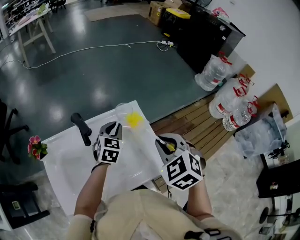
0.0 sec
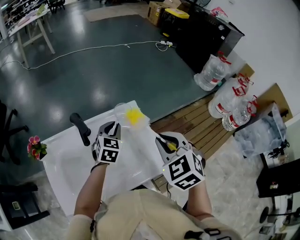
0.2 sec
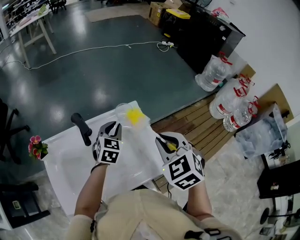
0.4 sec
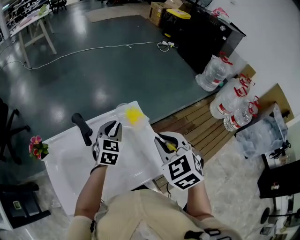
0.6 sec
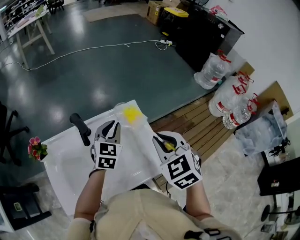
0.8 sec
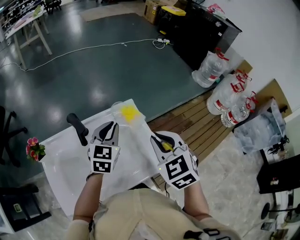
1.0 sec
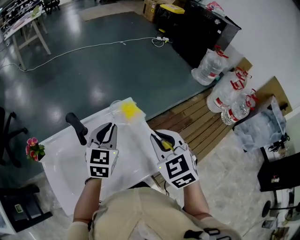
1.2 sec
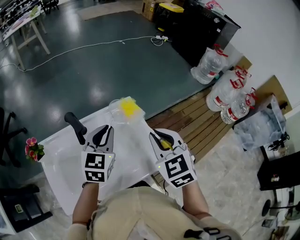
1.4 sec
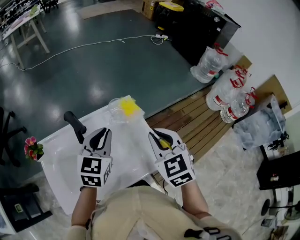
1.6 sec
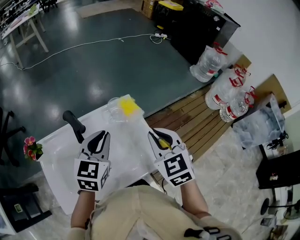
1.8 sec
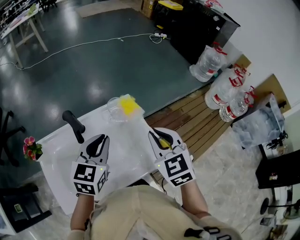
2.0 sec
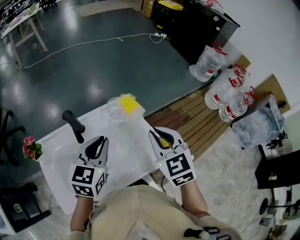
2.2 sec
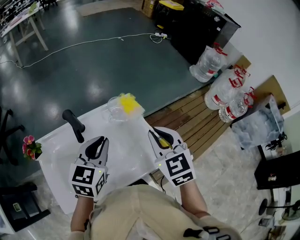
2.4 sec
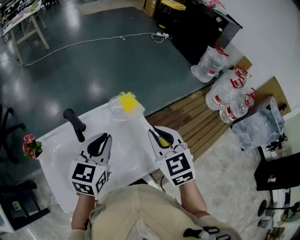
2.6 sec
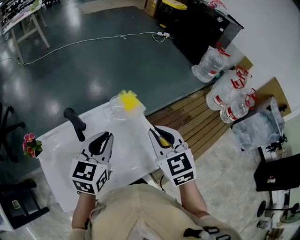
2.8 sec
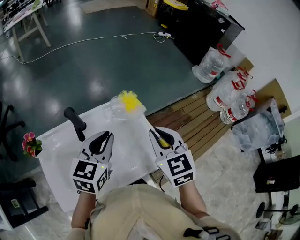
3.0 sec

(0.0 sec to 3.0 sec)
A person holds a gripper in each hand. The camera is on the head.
0.0 sec - 1.6 sec: The left gripper goes approximately 10 cm upward.

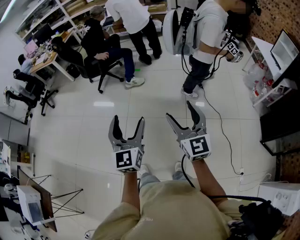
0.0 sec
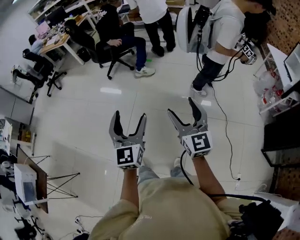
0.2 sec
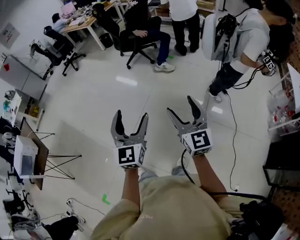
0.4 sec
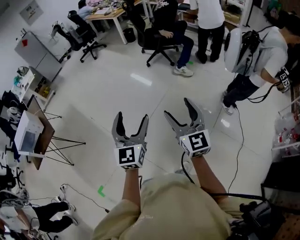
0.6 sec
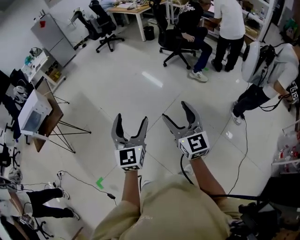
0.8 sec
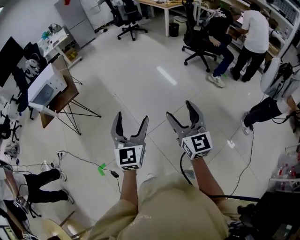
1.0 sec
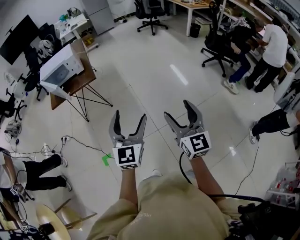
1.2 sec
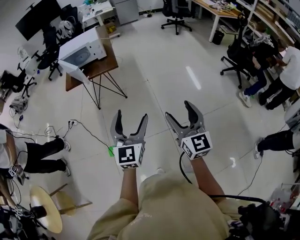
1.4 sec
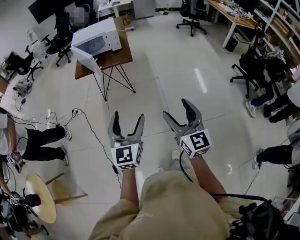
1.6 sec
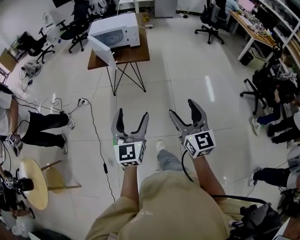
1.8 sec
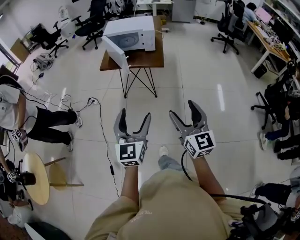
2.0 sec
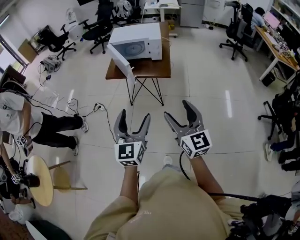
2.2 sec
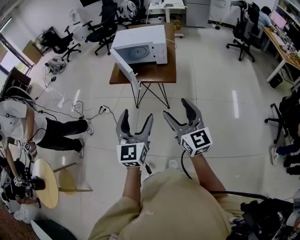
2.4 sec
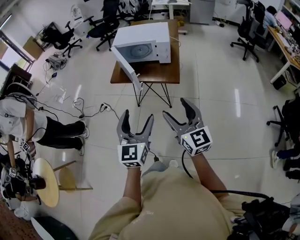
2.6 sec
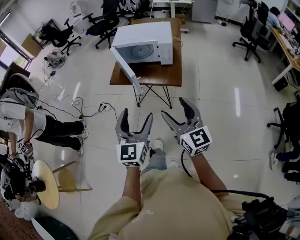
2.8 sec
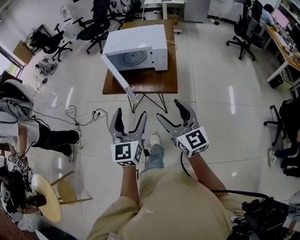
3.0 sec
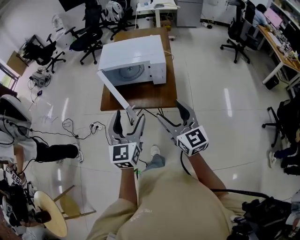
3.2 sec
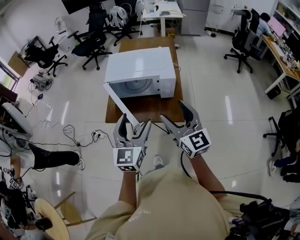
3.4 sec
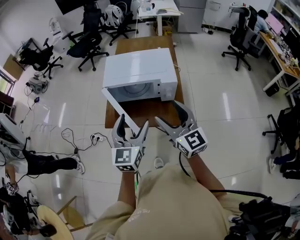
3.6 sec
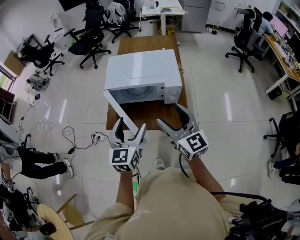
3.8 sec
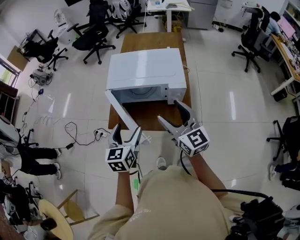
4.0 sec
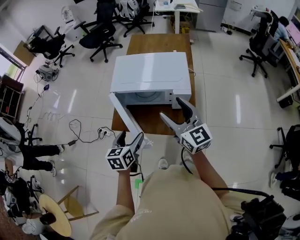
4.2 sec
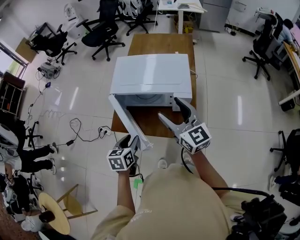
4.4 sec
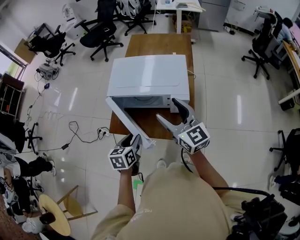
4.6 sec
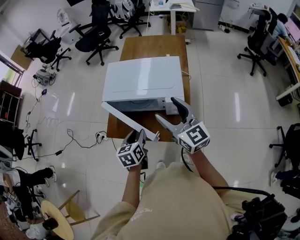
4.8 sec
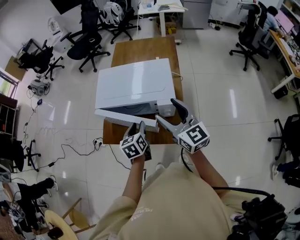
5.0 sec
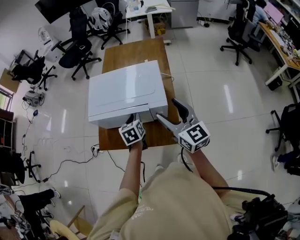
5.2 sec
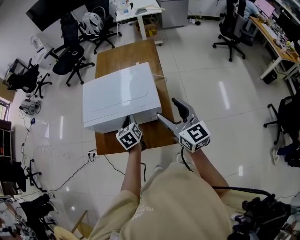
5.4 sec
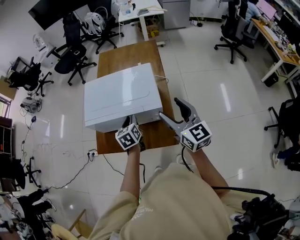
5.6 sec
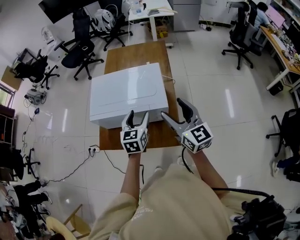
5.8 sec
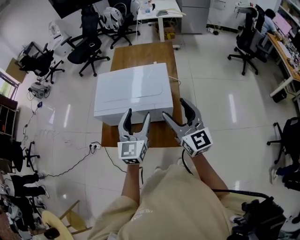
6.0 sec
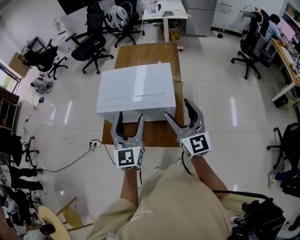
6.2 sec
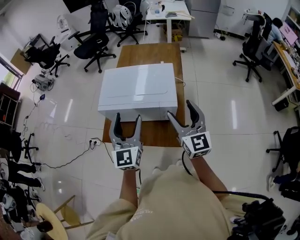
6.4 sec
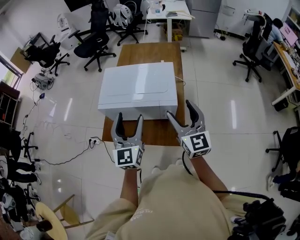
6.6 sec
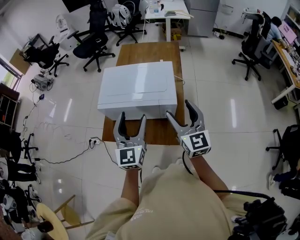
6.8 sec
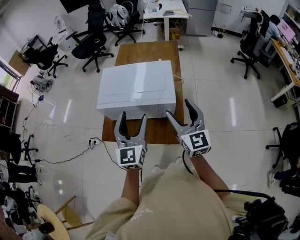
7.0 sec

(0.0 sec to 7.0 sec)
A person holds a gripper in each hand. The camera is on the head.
0.0 sec - 1.4 sec: The two grippers travel together, some 80 cm. The left gripper swivels some 50 degrees. Meanwhile the right gripper rotates approximately 60 degrees.
1.4 sec - 2.8 sec: Both grippers are carried about 50 cm. The left gripper turns by roughly 20 degrees; the right gripper turns by some 30 degrees.
2.8 sec - 4.2 sec: The two grippers go approximately 40 cm forward. The left gripper points its fingers some 30 degrees further downward.
4.2 sec - 5.6 sec: The left gripper shifts approximately 20 cm to the right and forward, and closes up. The right gripper heads to the right, covering about 15 cm.
5.6 sec - 7.0 sec: The left gripper heads upward and backward, covering approximately 25 cm, tips its fingers upward by some 40 degrees, and opens up.

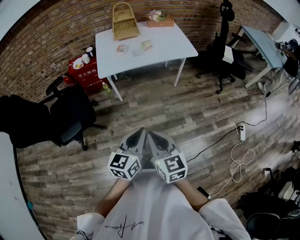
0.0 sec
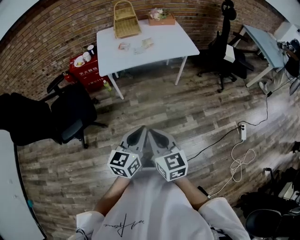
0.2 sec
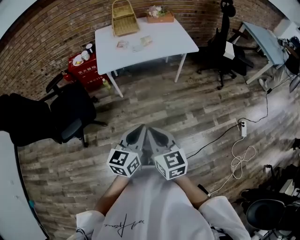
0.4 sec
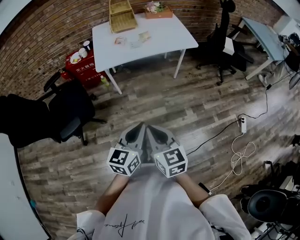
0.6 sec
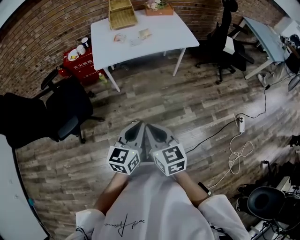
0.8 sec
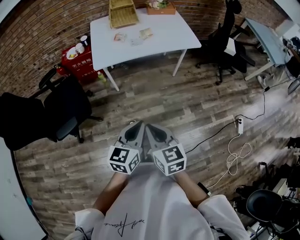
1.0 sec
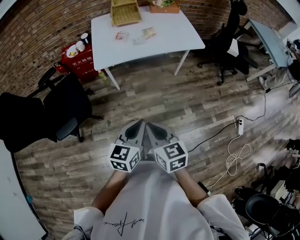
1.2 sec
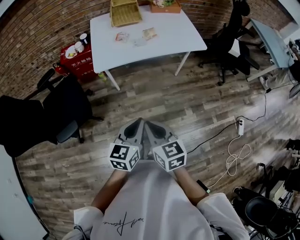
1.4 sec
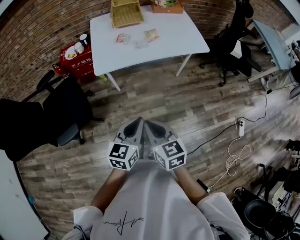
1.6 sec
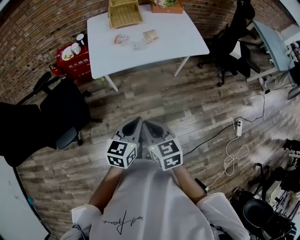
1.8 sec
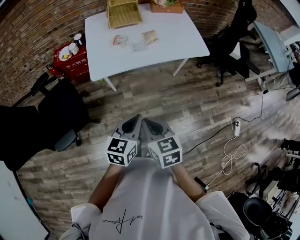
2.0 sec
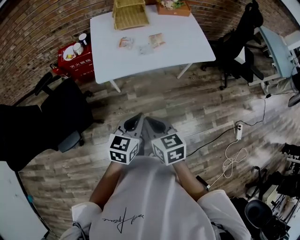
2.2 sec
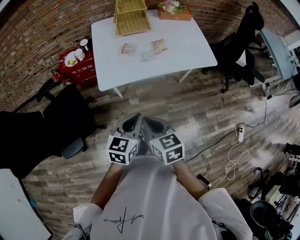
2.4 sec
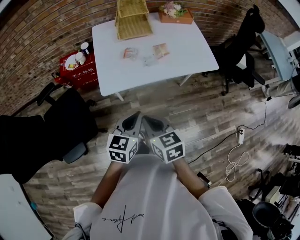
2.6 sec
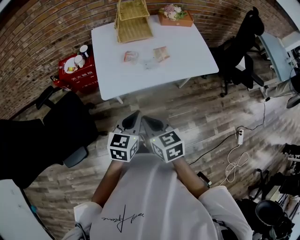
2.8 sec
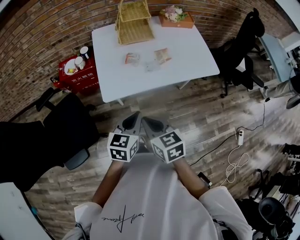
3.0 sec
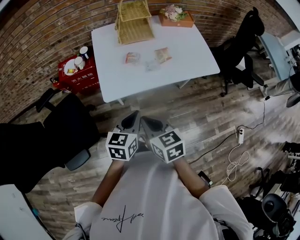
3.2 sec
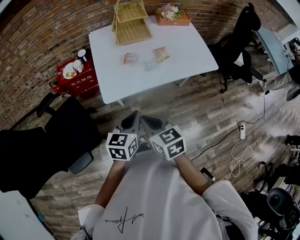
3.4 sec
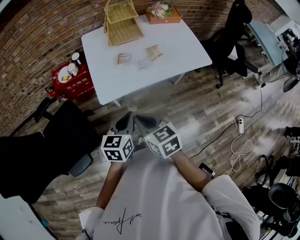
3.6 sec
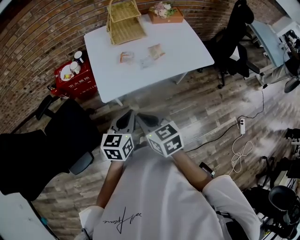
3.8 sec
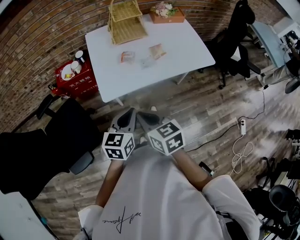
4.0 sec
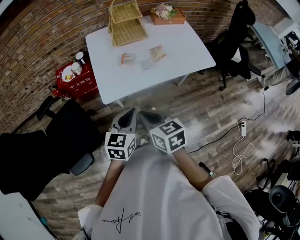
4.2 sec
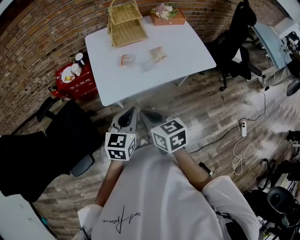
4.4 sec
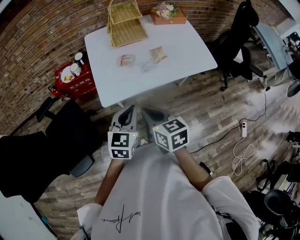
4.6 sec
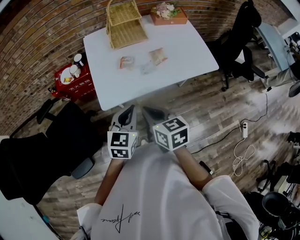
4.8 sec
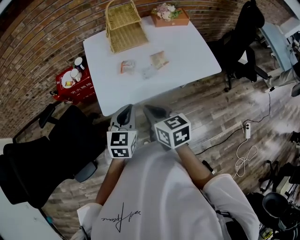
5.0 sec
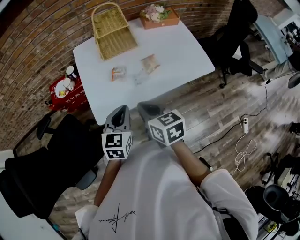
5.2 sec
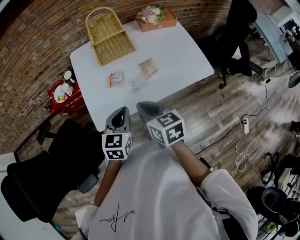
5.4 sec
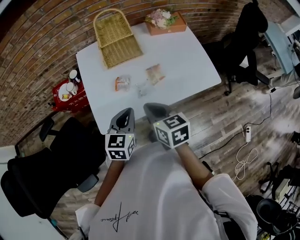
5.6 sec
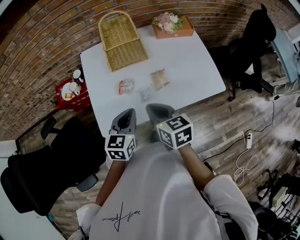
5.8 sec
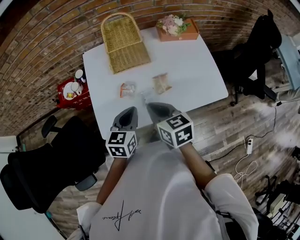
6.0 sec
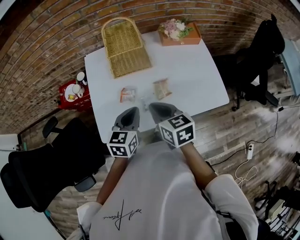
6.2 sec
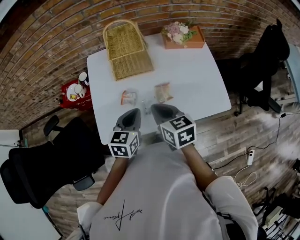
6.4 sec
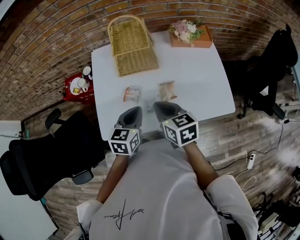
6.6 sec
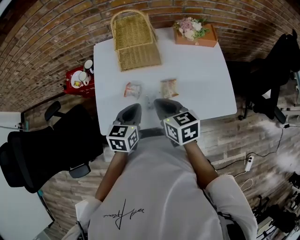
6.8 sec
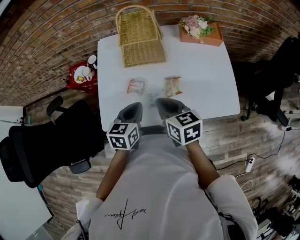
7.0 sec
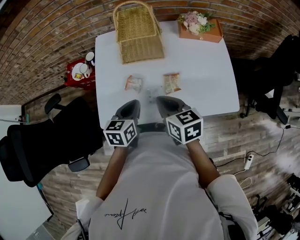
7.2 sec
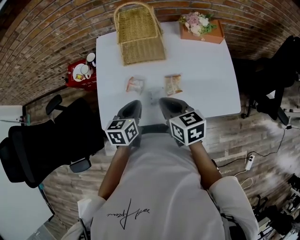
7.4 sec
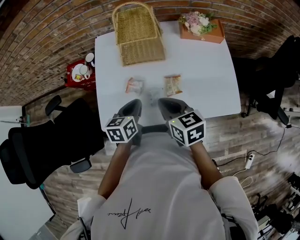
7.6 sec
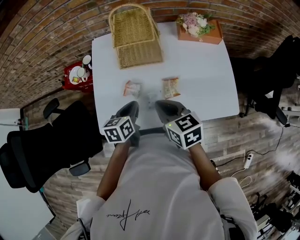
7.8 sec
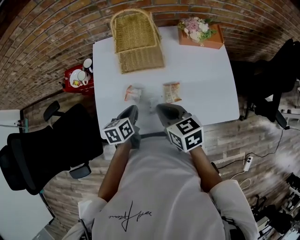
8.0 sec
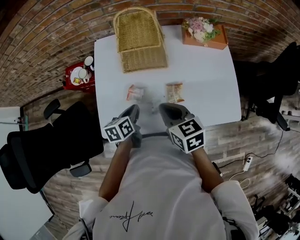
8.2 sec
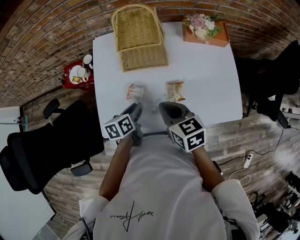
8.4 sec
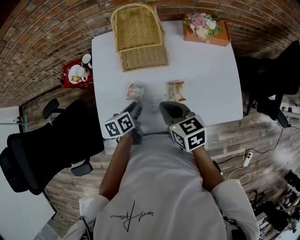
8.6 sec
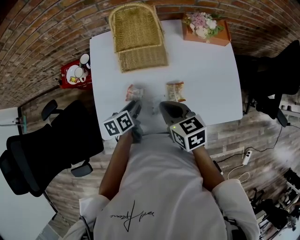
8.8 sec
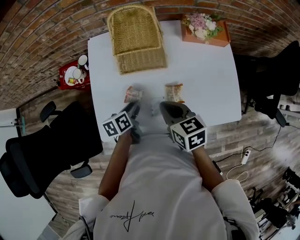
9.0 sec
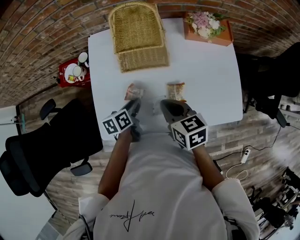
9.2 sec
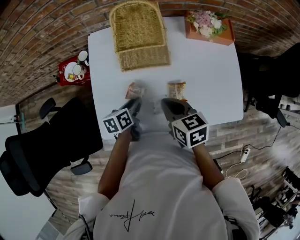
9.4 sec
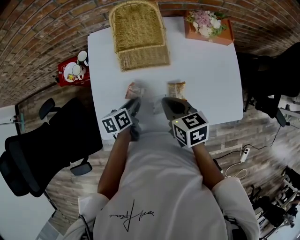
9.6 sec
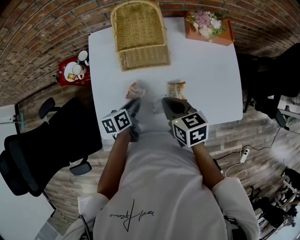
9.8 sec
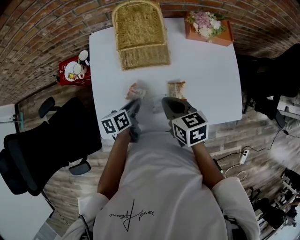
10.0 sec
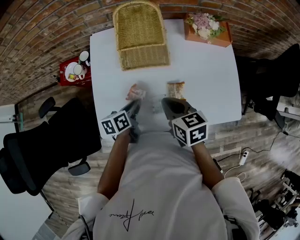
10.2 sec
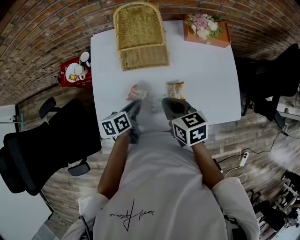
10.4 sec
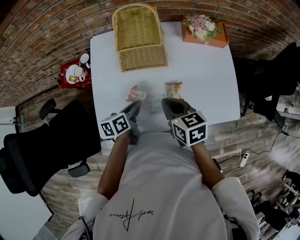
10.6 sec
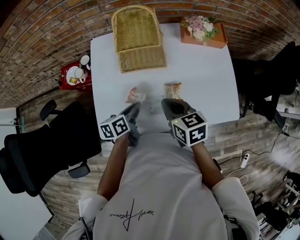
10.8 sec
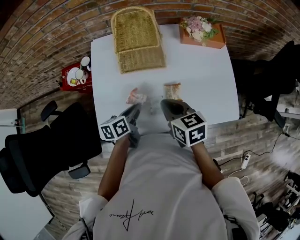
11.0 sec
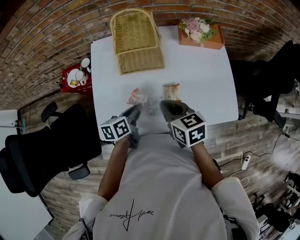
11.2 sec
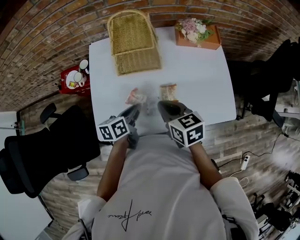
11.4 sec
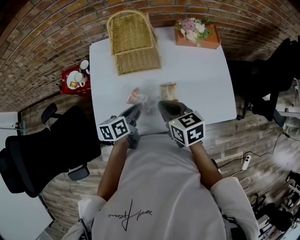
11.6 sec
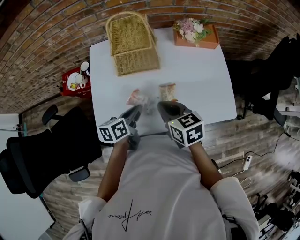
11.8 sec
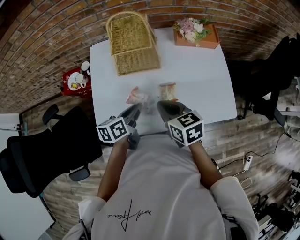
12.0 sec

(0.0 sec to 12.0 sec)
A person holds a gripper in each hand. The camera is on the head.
0.0 sec - 1.6 sec: Both grippers travel together forward, roughly 15 cm.
1.6 sec - 3.0 sec: The right gripper heads forward and to the left, covering some 20 cm; the left gripper travels forward by roughly 20 cm.
3.0 sec - 4.4 sec: The grippers make only small movements.
4.4 sec - 6.0 sec: The left gripper heads forward, covering about 20 cm. Meanwhile the right gripper is displaced forward and to the right by some 20 cm.
6.0 sec - 7.6 sec: The left gripper goes approximately 5 cm downward, and swivels roughly 20 degrees.
7.6 sec - 9.0 sec: The left gripper travels downward by roughly 10 cm, rotates roughly 20 degrees, and opens.
9.0 sec - 10.4 sec: The grippers stay close to where they were, moving slightly.
10.4 sec - 12.0 sec: The left gripper moves upward, approximately 5 cm.

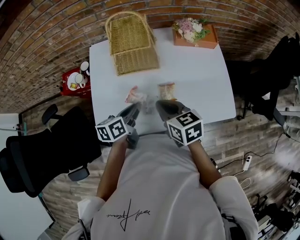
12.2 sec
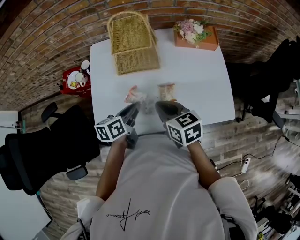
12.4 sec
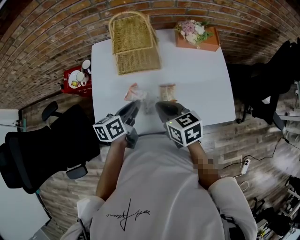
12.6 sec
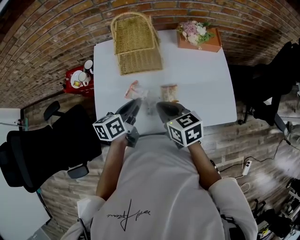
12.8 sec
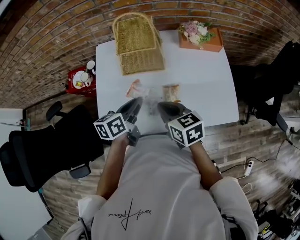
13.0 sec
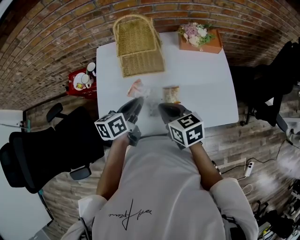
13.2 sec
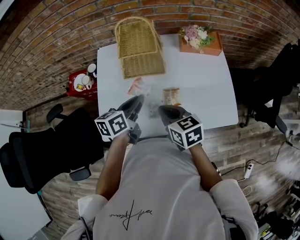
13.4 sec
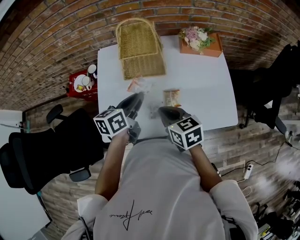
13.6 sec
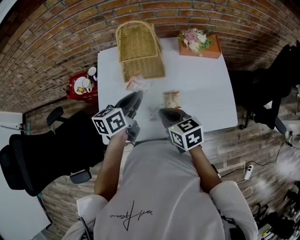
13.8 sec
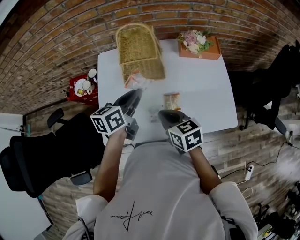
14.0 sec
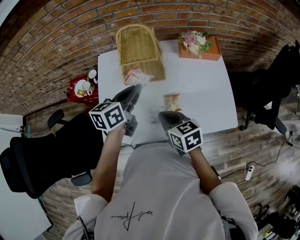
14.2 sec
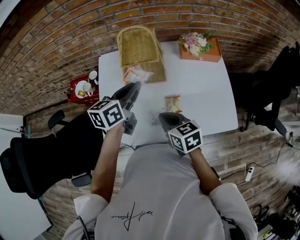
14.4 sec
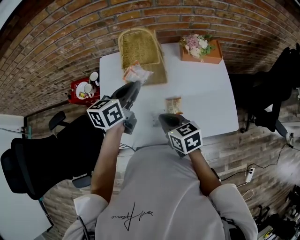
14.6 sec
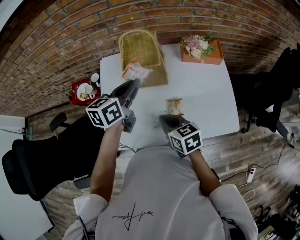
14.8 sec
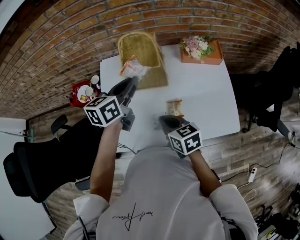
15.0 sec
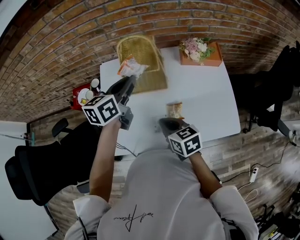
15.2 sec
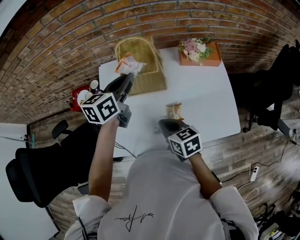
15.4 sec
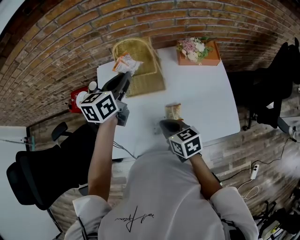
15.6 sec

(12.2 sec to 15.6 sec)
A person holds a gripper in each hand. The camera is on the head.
12.2 sec - 13.8 sec: The left gripper shifts some 10 cm upward and forward.
13.8 sec - 15.6 sec: The left gripper travels forward and upward by about 15 cm.
